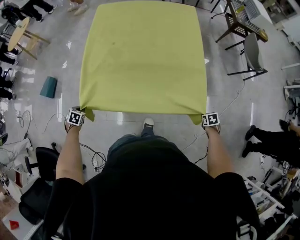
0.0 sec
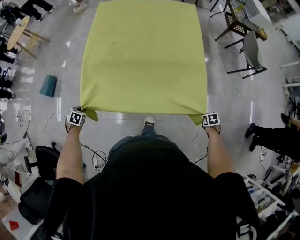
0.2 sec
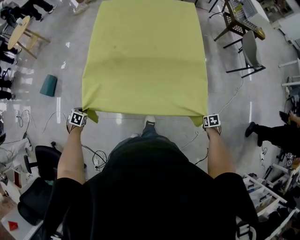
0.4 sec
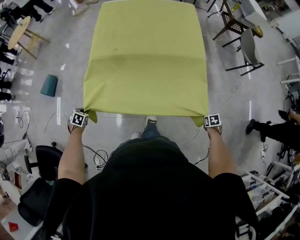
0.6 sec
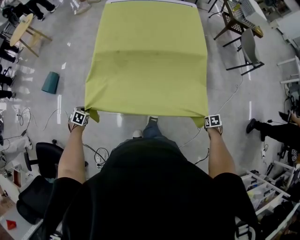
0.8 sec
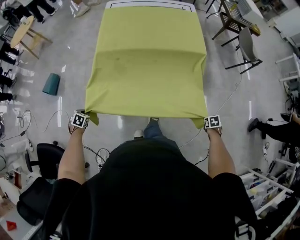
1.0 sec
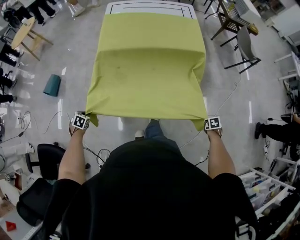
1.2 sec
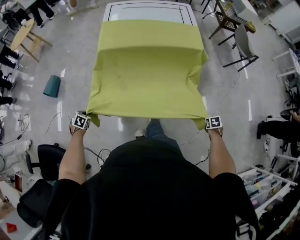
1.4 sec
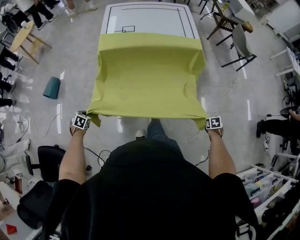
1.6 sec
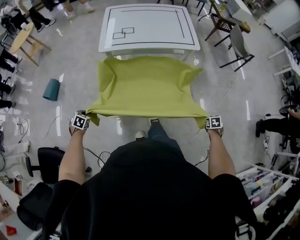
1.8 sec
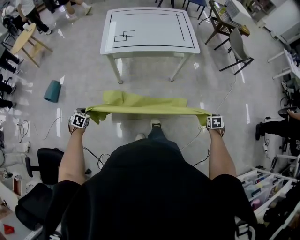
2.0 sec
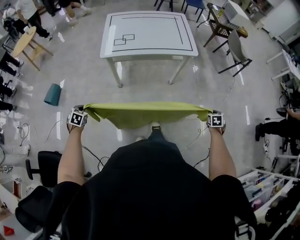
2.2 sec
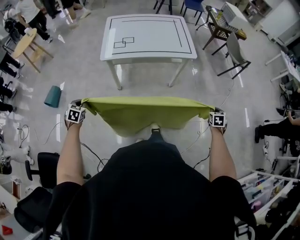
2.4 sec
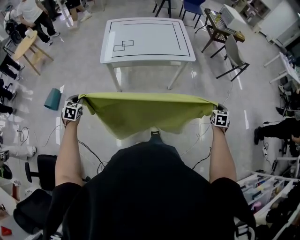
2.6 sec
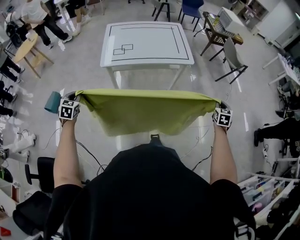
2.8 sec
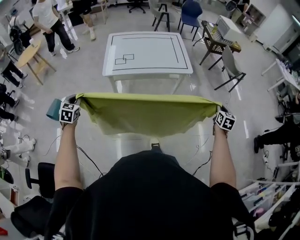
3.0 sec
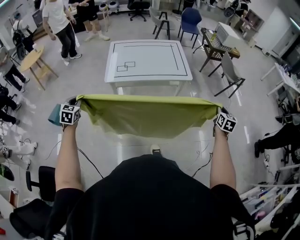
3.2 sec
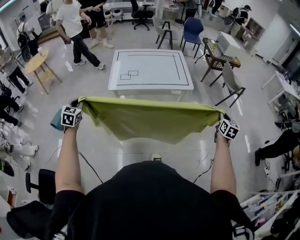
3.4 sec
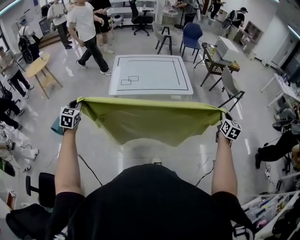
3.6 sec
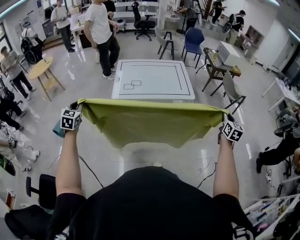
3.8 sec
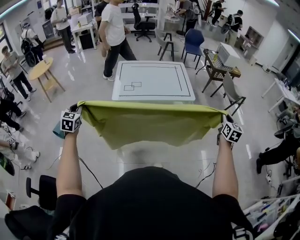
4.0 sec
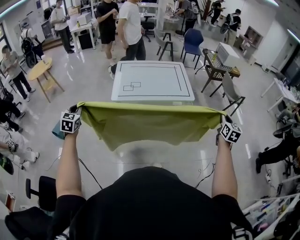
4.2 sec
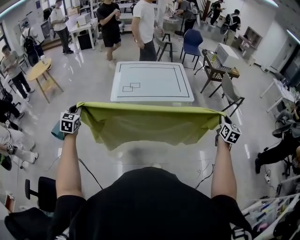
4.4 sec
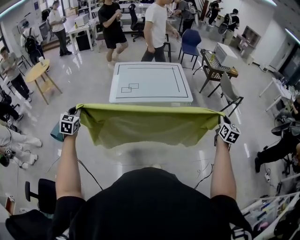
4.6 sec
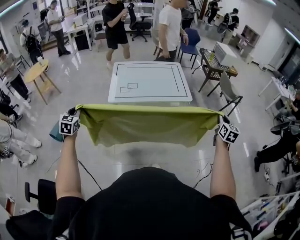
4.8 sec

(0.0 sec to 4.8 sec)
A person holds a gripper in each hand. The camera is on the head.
0.0 sec - 1.6 sec: The left gripper changes place by approximately 25 cm. The right gripper ends up about 30 cm from where it was.
1.6 sec - 3.2 sec: Both grippers travel together upward, roughly 35 cm. The right gripper points its fingers some 50 degrees further upward, while the left gripper angles its fingers upward, by approximately 40 degrees.
3.2 sec - 4.8 sec: Both grippers move upward, approximately 10 cm.

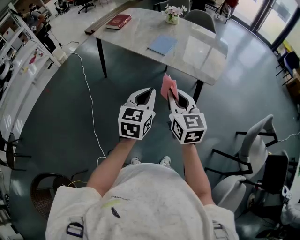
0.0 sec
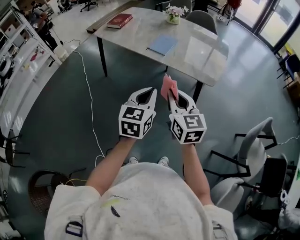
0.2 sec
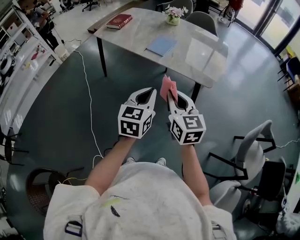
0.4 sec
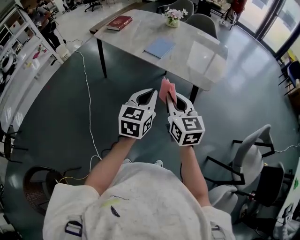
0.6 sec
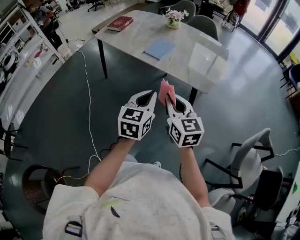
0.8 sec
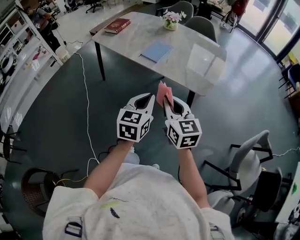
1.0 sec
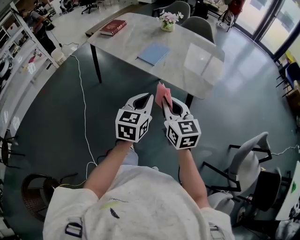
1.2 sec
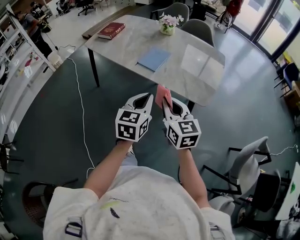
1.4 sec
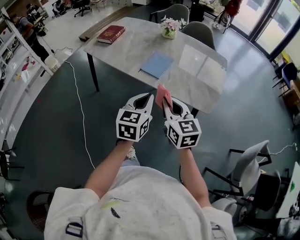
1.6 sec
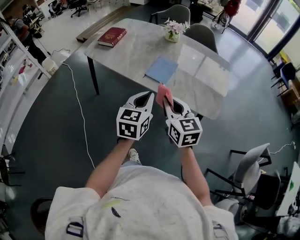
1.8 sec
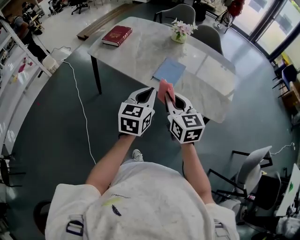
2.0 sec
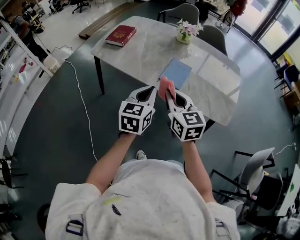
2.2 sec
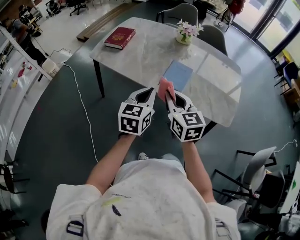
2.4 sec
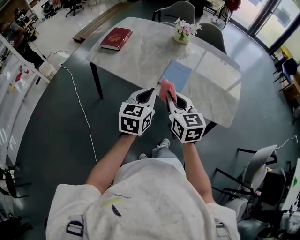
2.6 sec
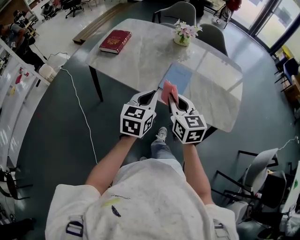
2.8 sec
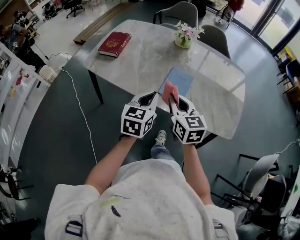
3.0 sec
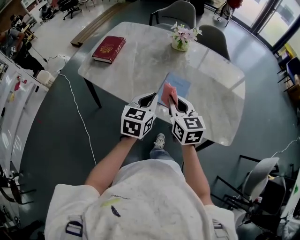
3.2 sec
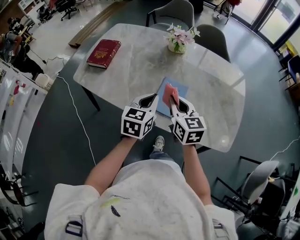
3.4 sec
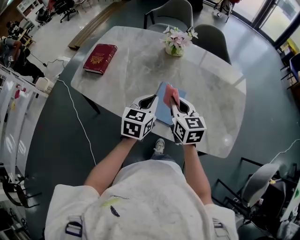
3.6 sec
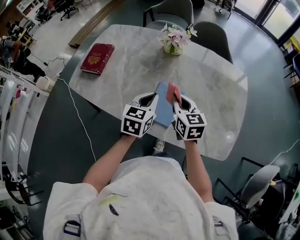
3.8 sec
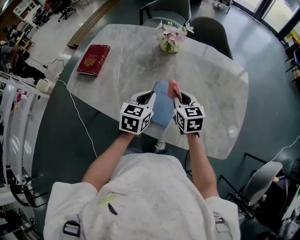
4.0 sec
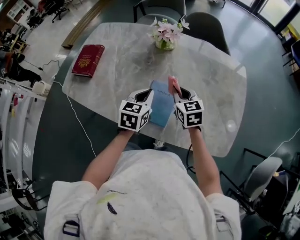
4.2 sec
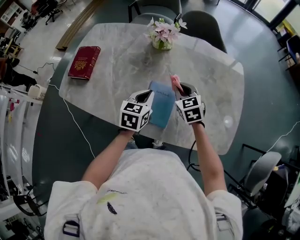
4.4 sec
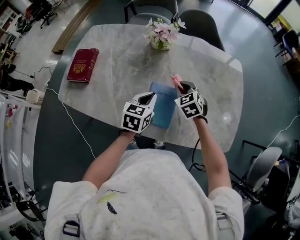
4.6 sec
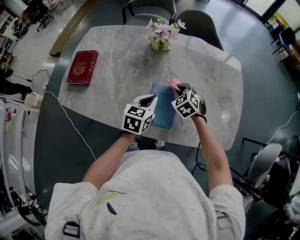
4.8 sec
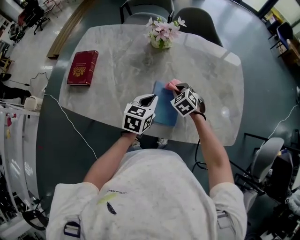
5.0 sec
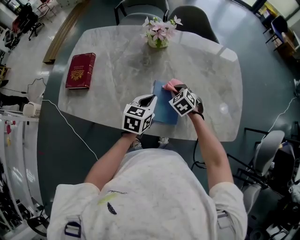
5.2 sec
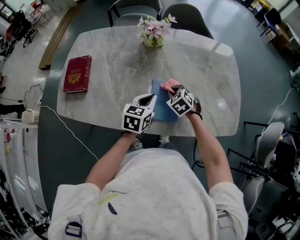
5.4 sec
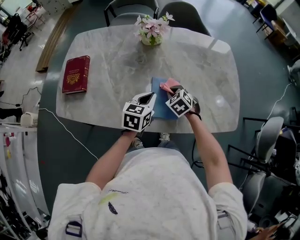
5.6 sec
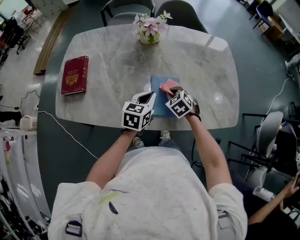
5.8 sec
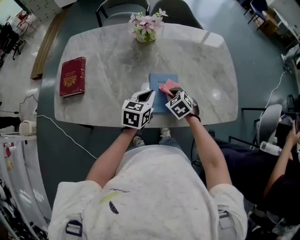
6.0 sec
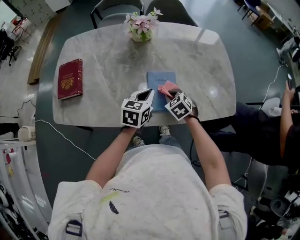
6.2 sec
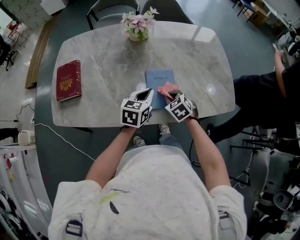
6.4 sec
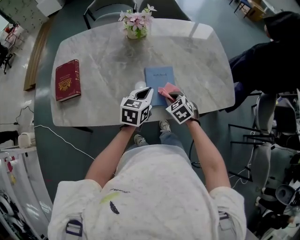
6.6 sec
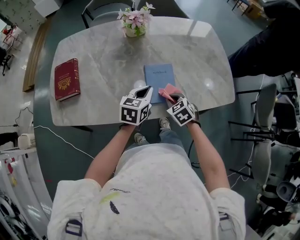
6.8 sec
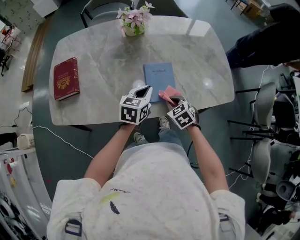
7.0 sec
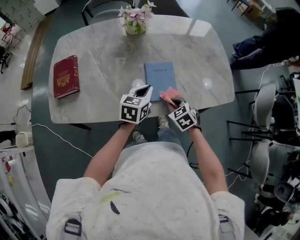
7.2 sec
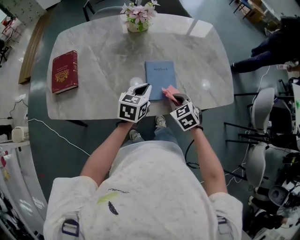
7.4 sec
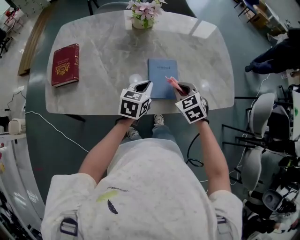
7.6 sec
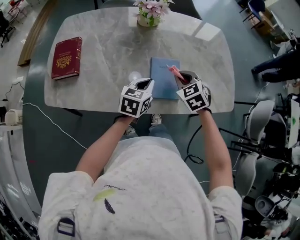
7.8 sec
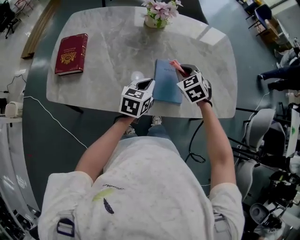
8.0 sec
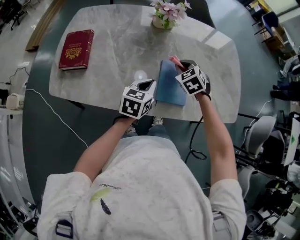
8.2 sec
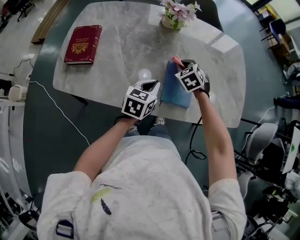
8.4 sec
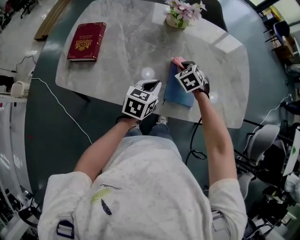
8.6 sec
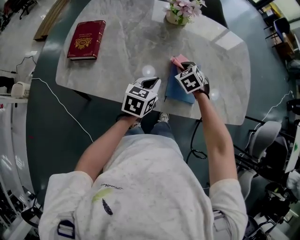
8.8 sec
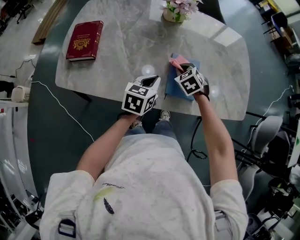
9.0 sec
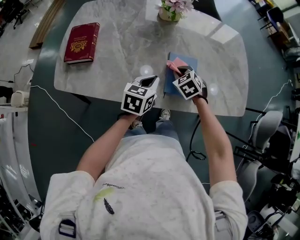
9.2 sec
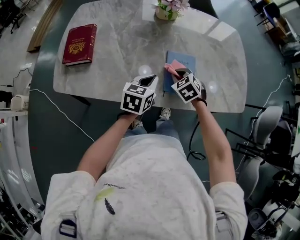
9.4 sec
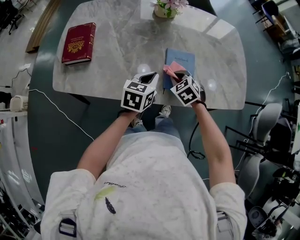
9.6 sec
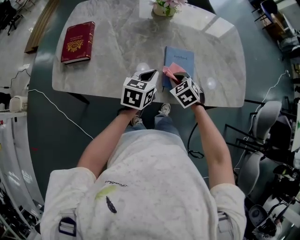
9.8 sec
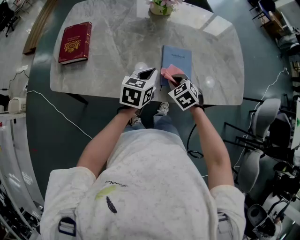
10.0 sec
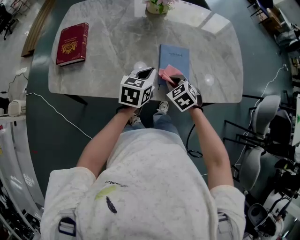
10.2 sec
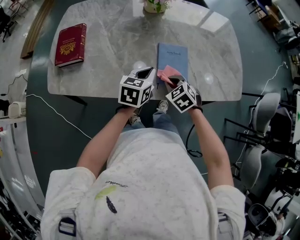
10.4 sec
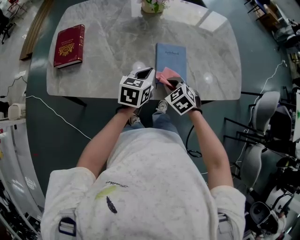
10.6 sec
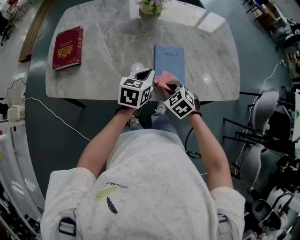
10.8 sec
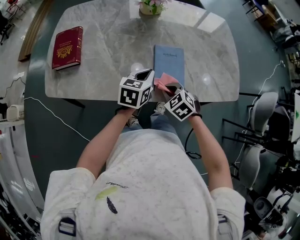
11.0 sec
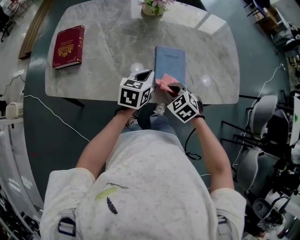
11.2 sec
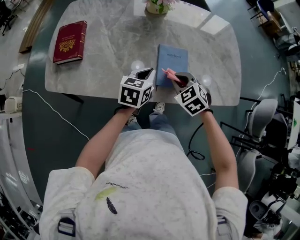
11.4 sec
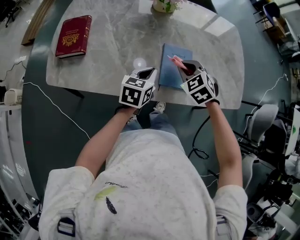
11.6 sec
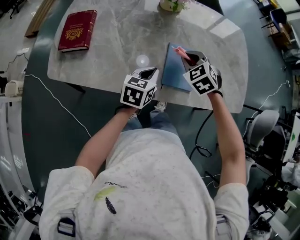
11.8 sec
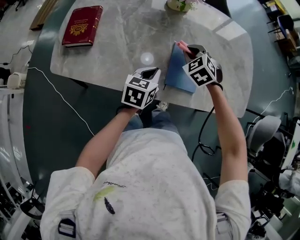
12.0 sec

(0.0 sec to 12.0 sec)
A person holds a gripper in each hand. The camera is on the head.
0.0 sec - 1.6 sec: Both grippers move forward, roughly 15 cm.
1.6 sec - 3.0 sec: The grippers both shift forward and to the left by approximately 25 cm.
3.0 sec - 4.4 sec: The left gripper heads forward, downward and to the right, covering roughly 25 cm, while the right gripper travels forward, to the right and downward by some 30 cm, and changes its angle by roughly 20 degrees.
4.4 sec - 6.0 sec: The right gripper travels downward and backward by about 15 cm, and changes its angle by approximately 20 degrees.
6.0 sec - 7.6 sec: The right gripper goes about 10 cm upward and backward.
7.6 sec - 9.0 sec: The left gripper heads to the left, covering approximately 5 cm. Meanwhile the right gripper shifts roughly 15 cm to the left, forward and downward.
9.0 sec - 10.4 sec: The right gripper is displaced backward by some 10 cm.
10.4 sec - 12.0 sec: The right gripper heads forward and upward, covering some 15 cm.

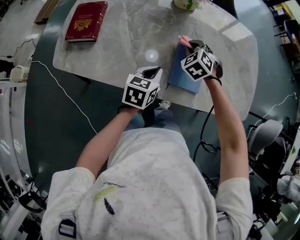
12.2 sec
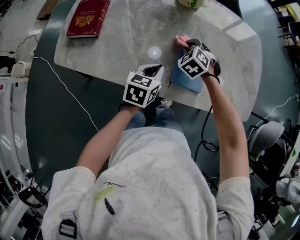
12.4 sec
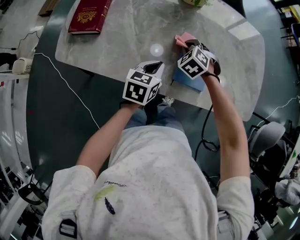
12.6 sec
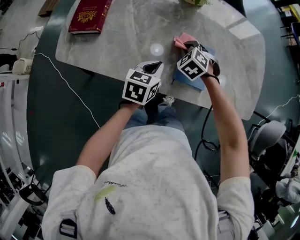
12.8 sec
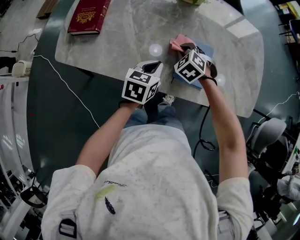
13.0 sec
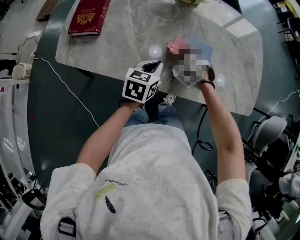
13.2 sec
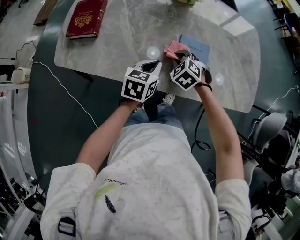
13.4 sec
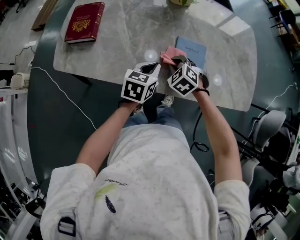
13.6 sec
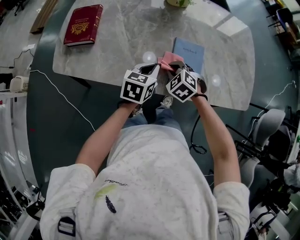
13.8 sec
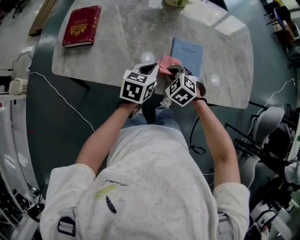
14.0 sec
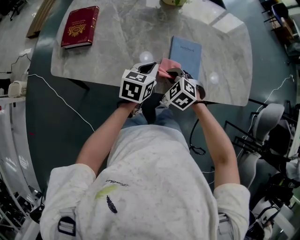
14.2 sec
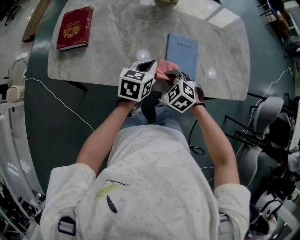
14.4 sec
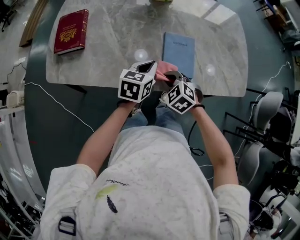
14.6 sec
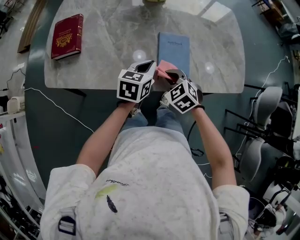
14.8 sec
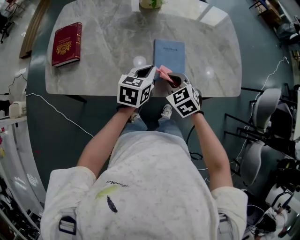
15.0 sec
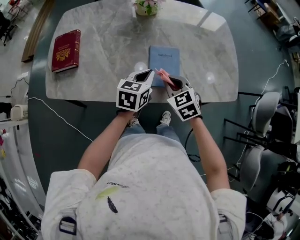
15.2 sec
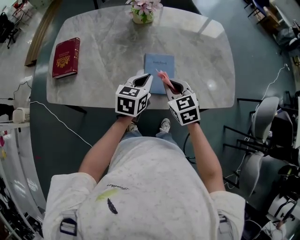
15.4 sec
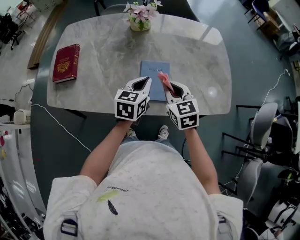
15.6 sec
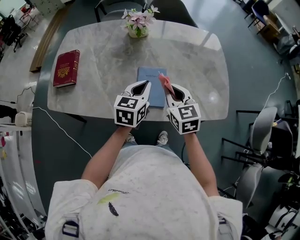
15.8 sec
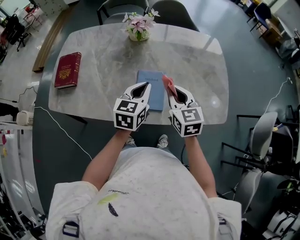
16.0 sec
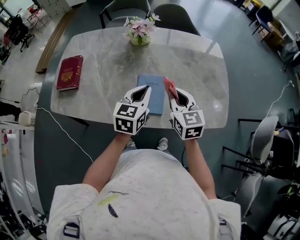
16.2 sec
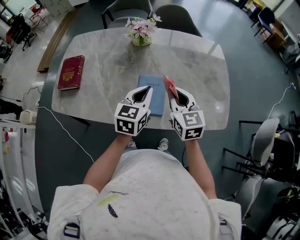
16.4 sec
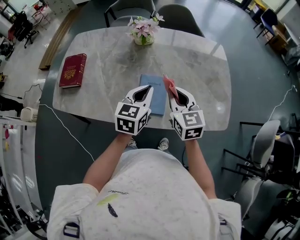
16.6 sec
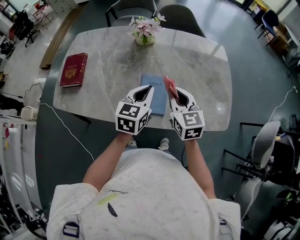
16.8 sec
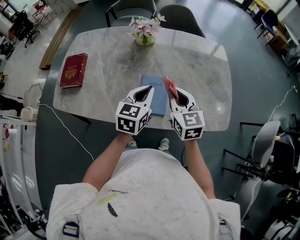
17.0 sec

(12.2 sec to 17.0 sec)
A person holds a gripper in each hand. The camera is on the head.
12.2 sec - 13.8 sec: The right gripper goes some 15 cm backward.
13.8 sec - 15.4 sec: The left gripper shifts about 10 cm to the right and upward. The right gripper goes approximately 15 cm upward and to the right, and turns by about 40 degrees.
15.4 sec - 17.0 sec: The right gripper shifts approximately 10 cm upward and to the right, while the left gripper heads upward, covering approximately 5 cm.

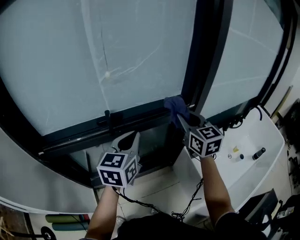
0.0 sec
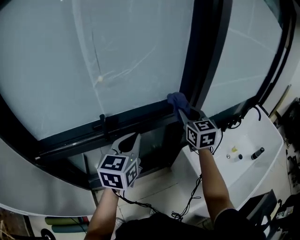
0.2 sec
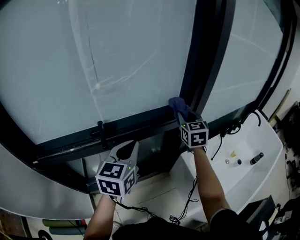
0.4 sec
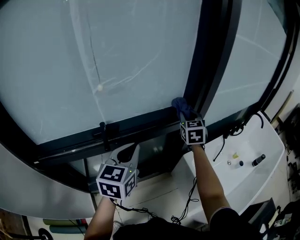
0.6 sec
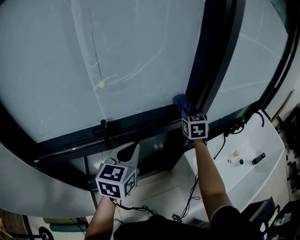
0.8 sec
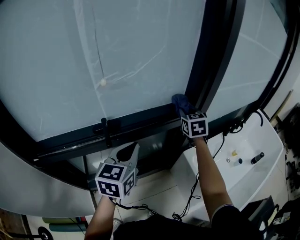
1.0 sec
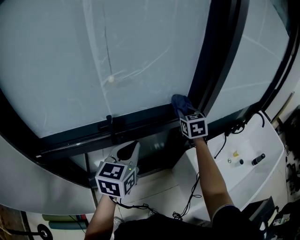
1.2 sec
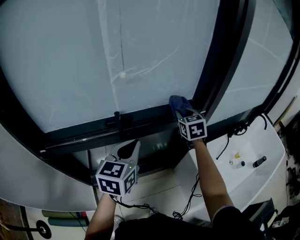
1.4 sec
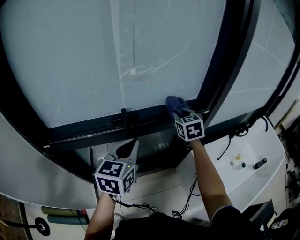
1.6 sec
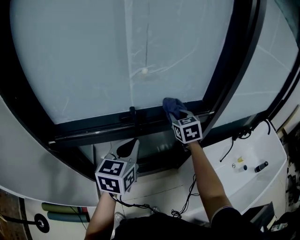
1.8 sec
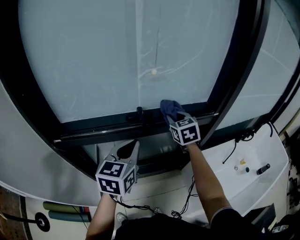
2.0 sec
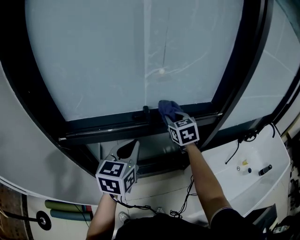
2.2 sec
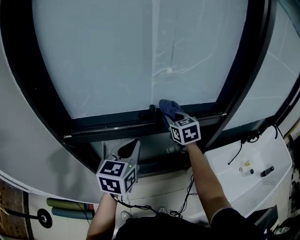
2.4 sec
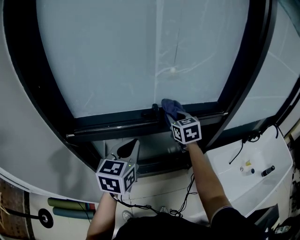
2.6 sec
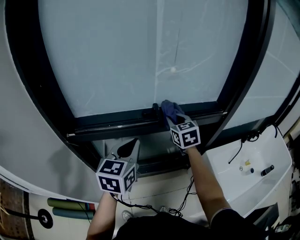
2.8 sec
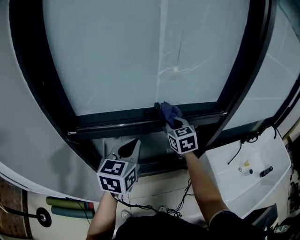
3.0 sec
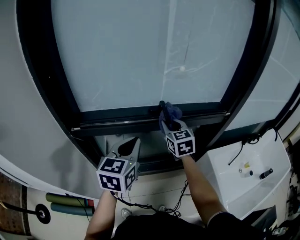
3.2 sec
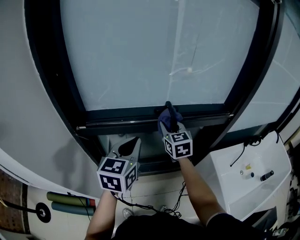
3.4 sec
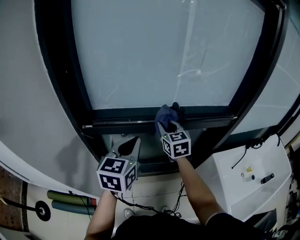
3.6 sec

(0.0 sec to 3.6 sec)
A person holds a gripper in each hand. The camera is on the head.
0.0 sec - 1.8 sec: The right gripper heads to the left, downward and forward, covering some 15 cm, and turns by roughly 20 degrees. Meanwhile the left gripper shifts some 10 cm to the left.
1.8 sec - 3.6 sec: The right gripper heads to the left, covering about 25 cm. Meanwhile the left gripper goes approximately 15 cm to the left and backward.
